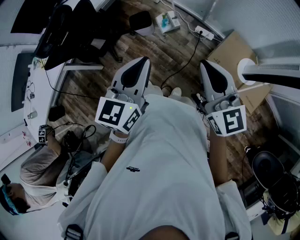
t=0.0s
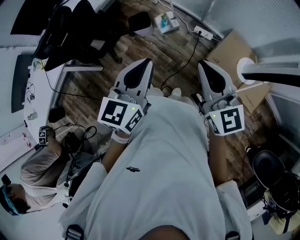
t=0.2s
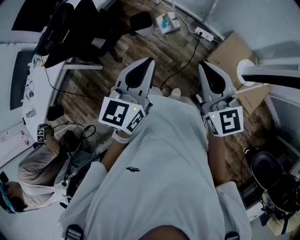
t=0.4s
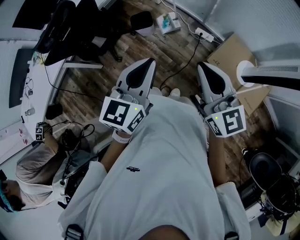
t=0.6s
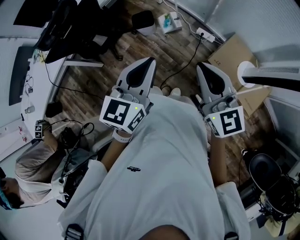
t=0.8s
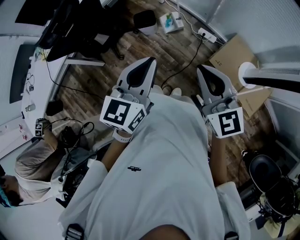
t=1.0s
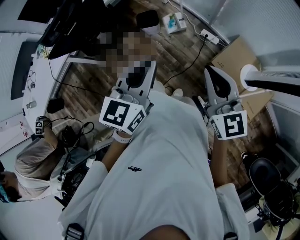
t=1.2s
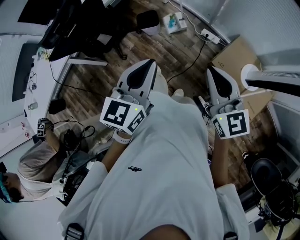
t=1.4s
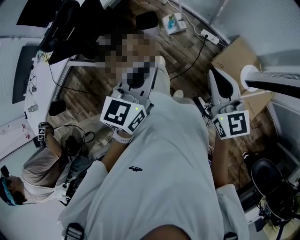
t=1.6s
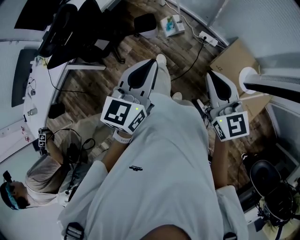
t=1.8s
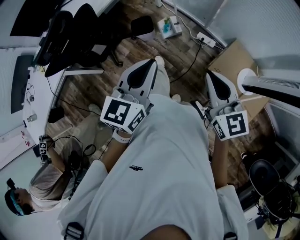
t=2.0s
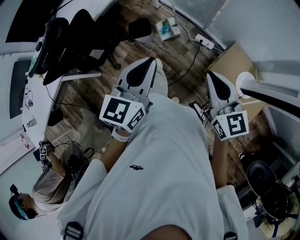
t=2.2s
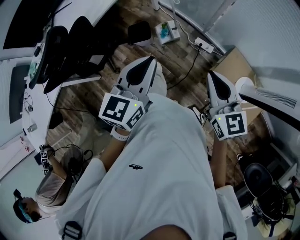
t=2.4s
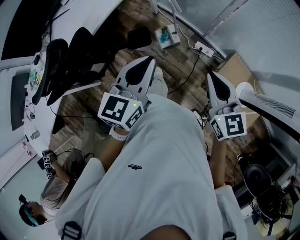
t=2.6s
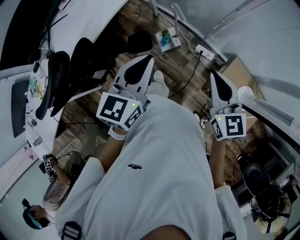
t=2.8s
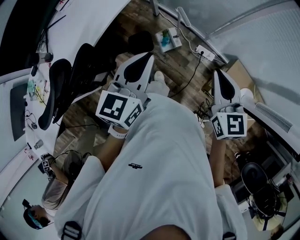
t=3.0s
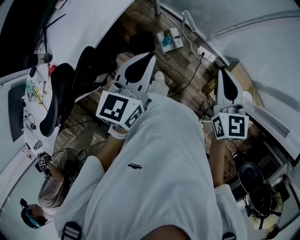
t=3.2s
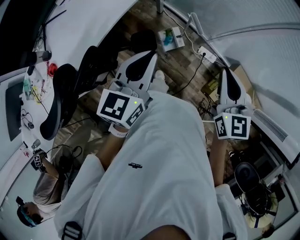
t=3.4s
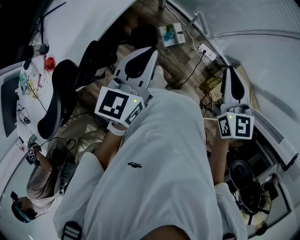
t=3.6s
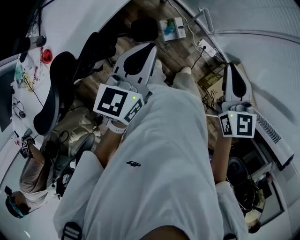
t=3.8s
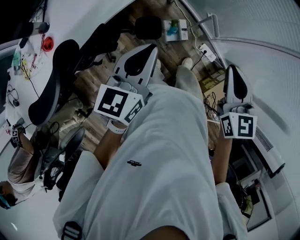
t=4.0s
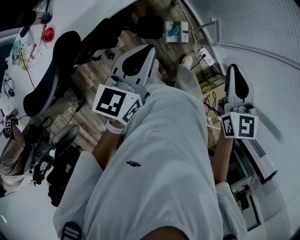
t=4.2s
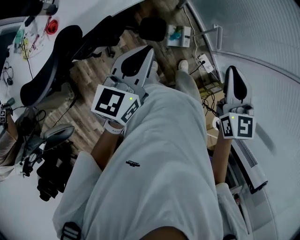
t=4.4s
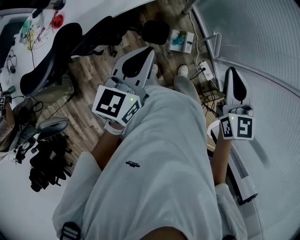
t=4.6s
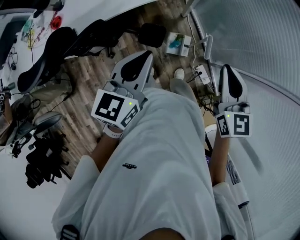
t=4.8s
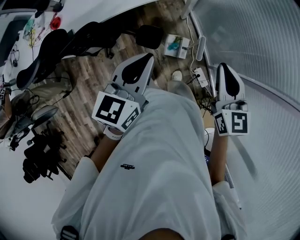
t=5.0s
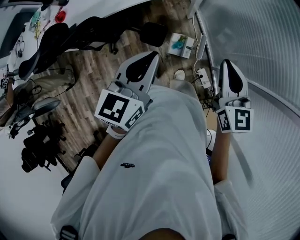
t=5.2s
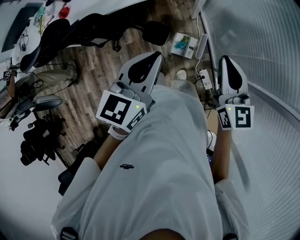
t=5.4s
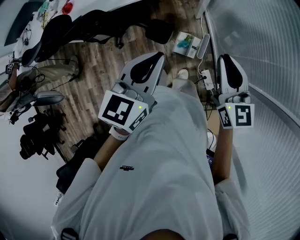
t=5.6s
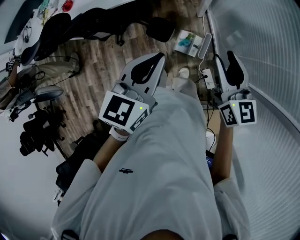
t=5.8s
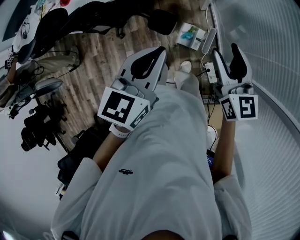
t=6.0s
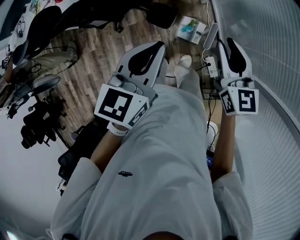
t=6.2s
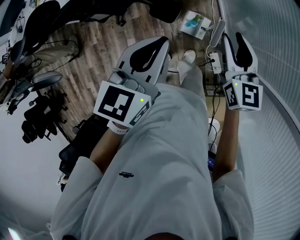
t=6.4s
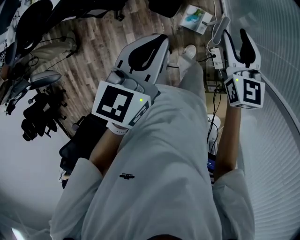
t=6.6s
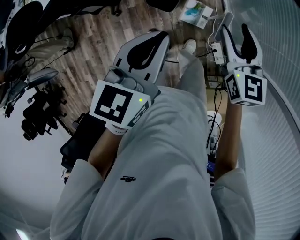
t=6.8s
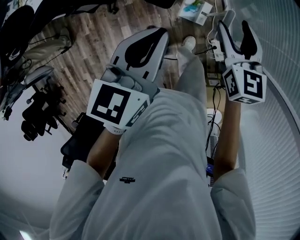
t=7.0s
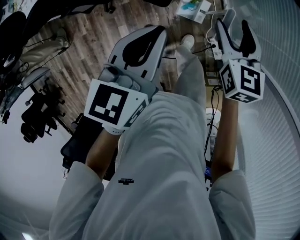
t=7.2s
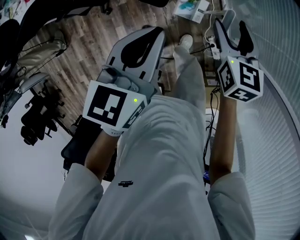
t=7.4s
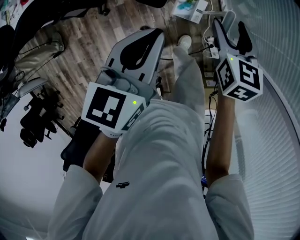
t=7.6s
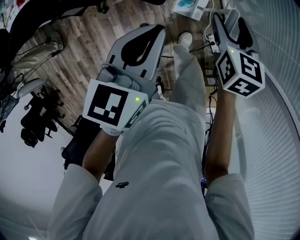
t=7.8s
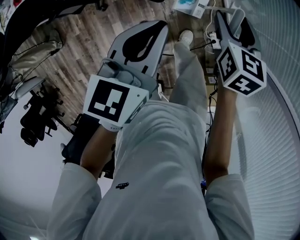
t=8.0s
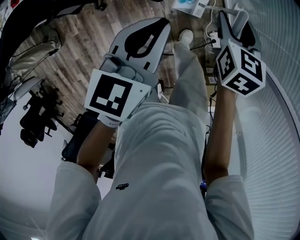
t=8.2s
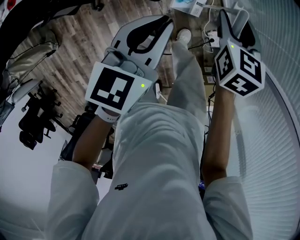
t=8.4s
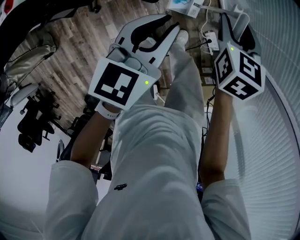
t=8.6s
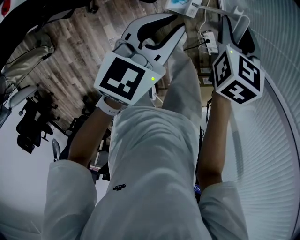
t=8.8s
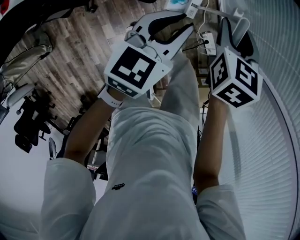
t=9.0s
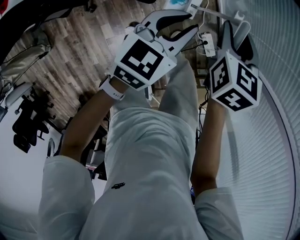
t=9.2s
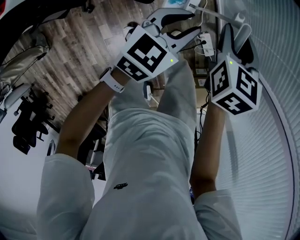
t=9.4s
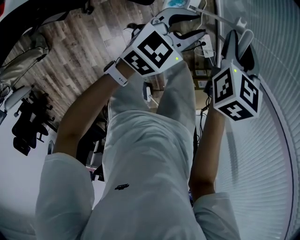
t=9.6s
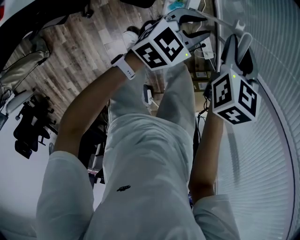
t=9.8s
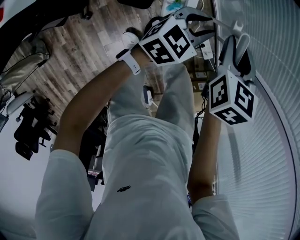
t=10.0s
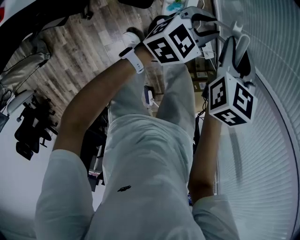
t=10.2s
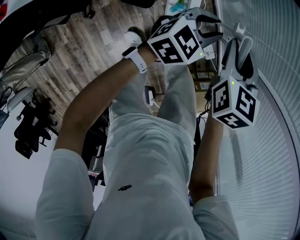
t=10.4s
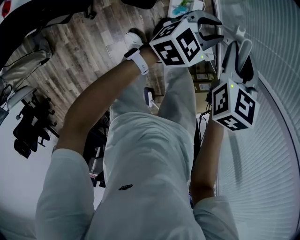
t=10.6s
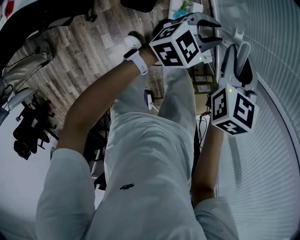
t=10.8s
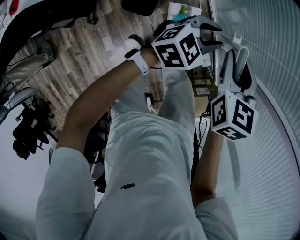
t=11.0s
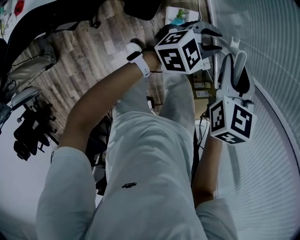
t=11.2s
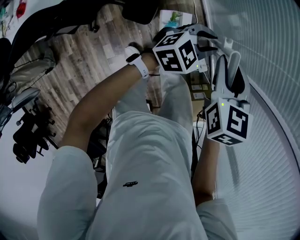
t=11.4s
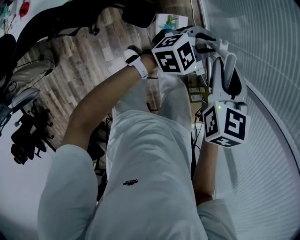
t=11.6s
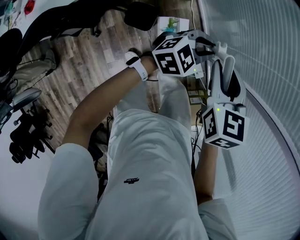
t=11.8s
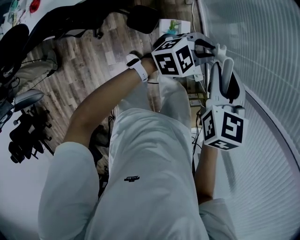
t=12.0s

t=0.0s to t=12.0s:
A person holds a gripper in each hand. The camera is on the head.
t=0.0s to t=1.6s: The grippers stay close to where they were, moving slightly.
t=1.6s to t=3.0s: Both grippers travel together forward, some 35 cm.
t=3.0s to t=4.4s: The left gripper goes roughly 15 cm to the left and downward, and swivels some 20 degrees. Meanwhile the right gripper goes roughly 20 cm forward and to the left.
t=4.4s to t=6.0s: The left gripper shifts approximately 20 cm to the right. Meanwhile the right gripper heads to the right, forward and downward, covering about 15 cm, rotates approximately 30 degrees, and opens up.
t=6.0s to t=7.6s: The two grippers go some 20 cm downward. The right gripper turns by roughly 30 degrees, and closes, then opens again.
t=7.6s to t=9.0s: The left gripper shifts roughly 10 cm downward.
t=9.0s to t=10.4s: The left gripper is displaced to the right, downward and forward by roughly 15 cm, and changes its angle by roughly 30 degrees.
t=10.4s to t=12.0s: The two grippers go roughly 15 cm upward.

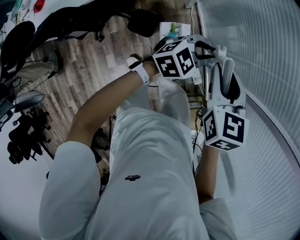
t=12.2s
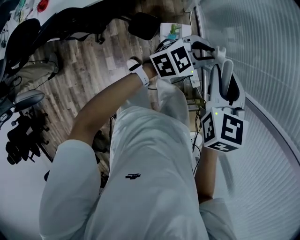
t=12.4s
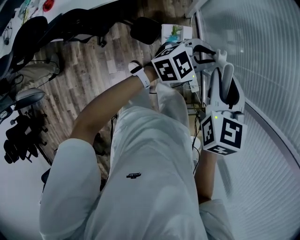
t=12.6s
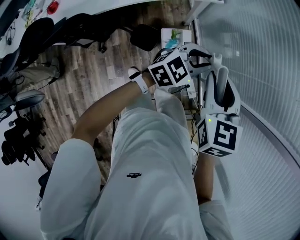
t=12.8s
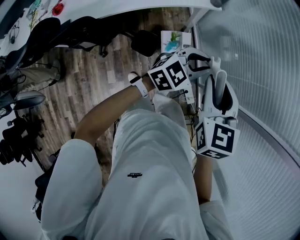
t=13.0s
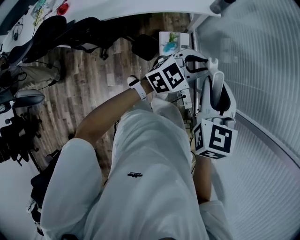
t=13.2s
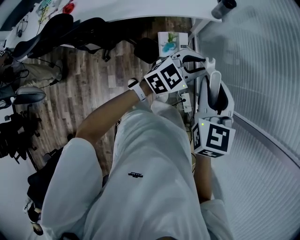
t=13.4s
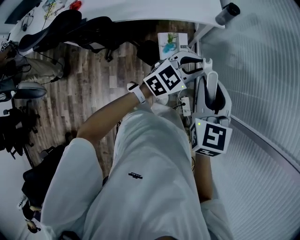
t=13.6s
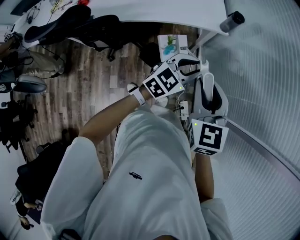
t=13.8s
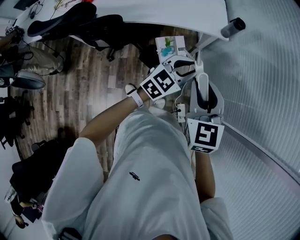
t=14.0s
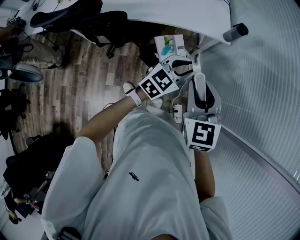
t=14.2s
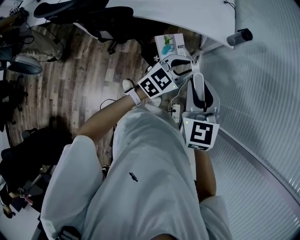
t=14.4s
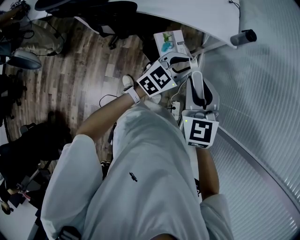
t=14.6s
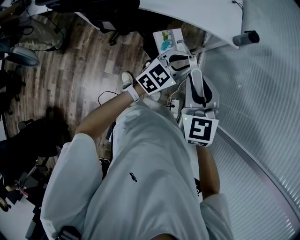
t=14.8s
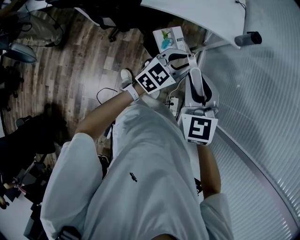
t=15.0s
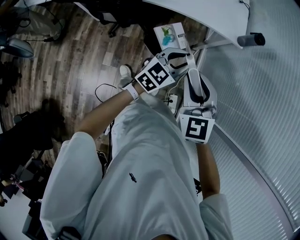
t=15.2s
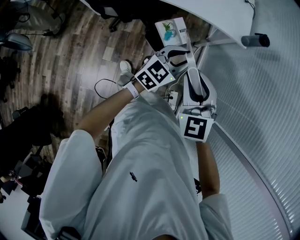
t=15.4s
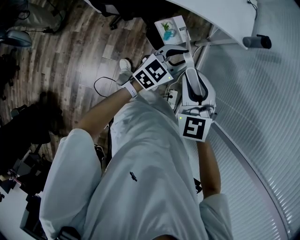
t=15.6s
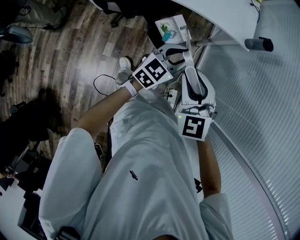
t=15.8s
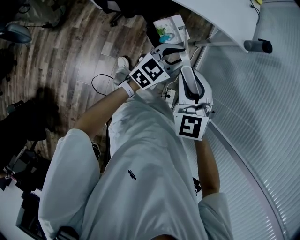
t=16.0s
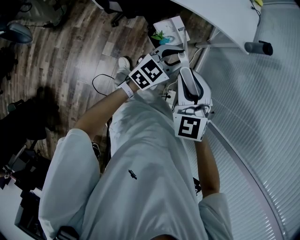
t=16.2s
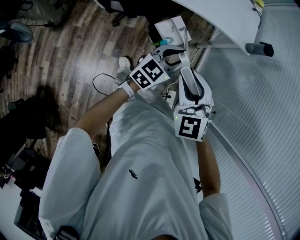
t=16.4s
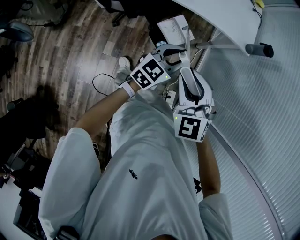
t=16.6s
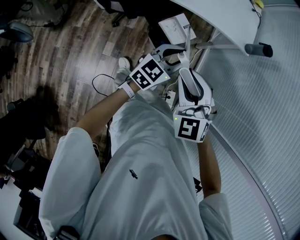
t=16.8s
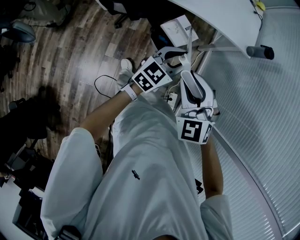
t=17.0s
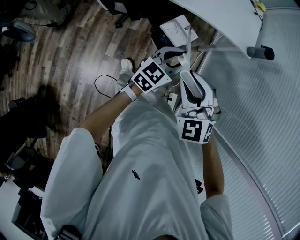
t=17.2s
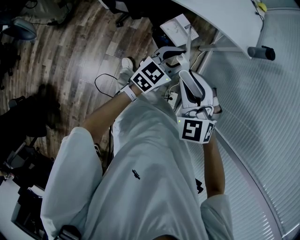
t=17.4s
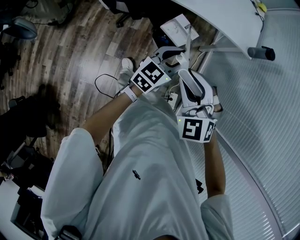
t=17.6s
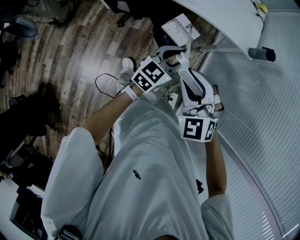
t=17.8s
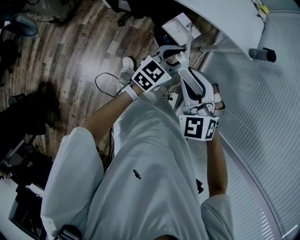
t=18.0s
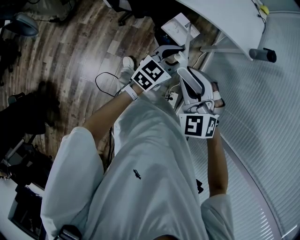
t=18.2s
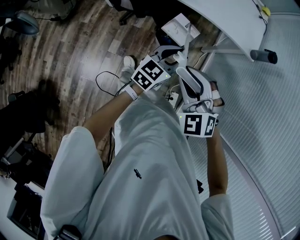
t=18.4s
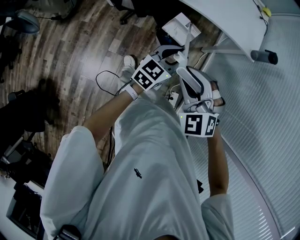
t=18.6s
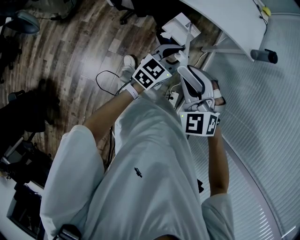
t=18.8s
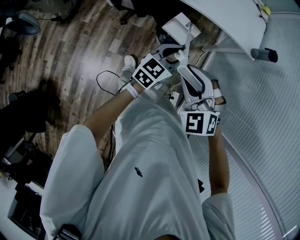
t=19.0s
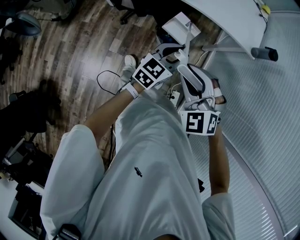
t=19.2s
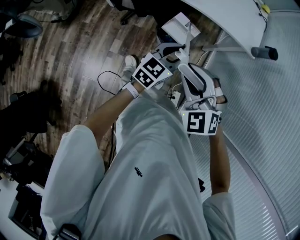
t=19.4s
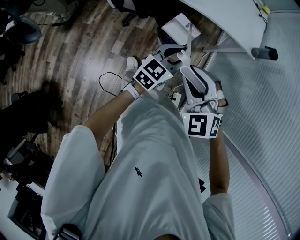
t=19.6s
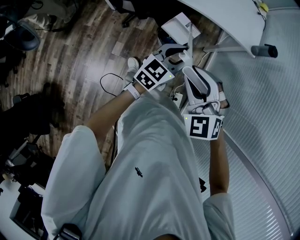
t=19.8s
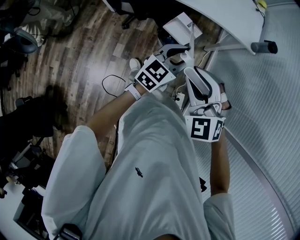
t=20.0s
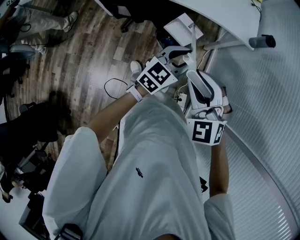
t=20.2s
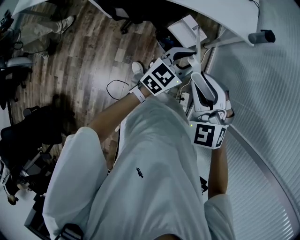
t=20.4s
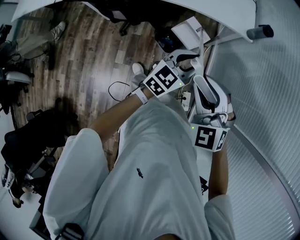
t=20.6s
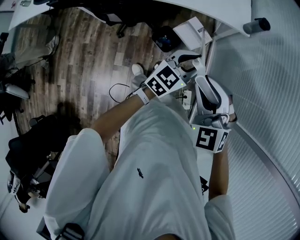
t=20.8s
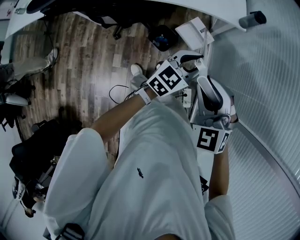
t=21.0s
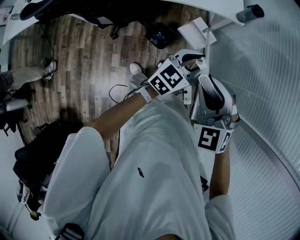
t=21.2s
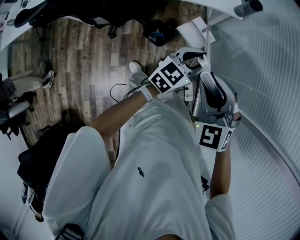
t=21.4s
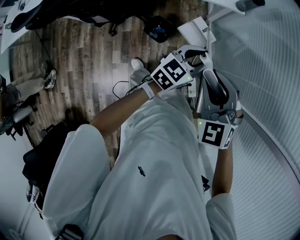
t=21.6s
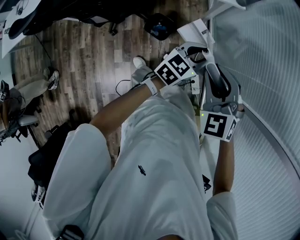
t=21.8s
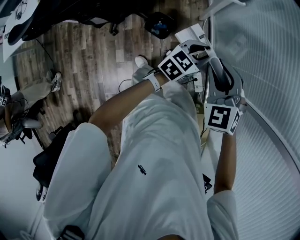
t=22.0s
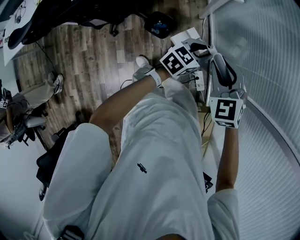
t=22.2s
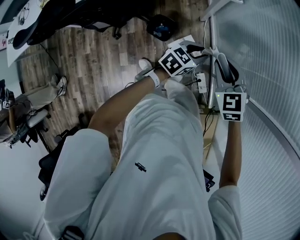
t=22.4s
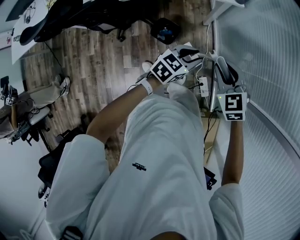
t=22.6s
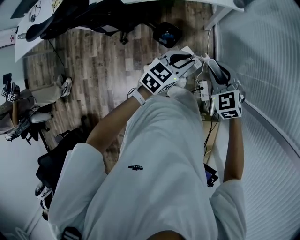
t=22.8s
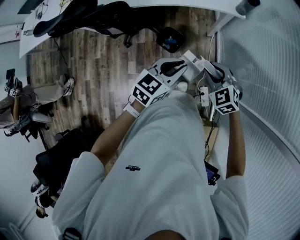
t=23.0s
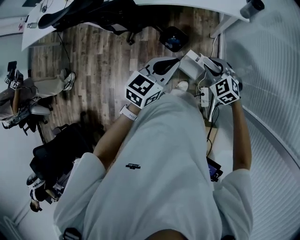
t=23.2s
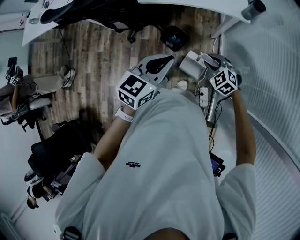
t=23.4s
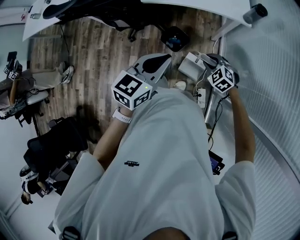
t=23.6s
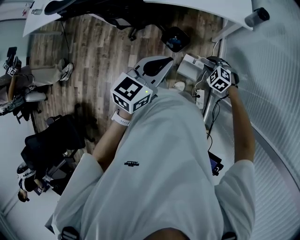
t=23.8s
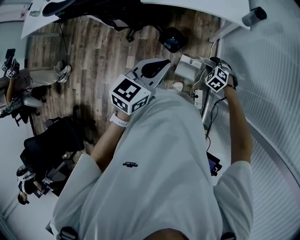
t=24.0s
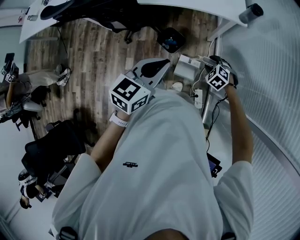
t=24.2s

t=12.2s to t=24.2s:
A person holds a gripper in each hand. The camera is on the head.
t=12.2s to t=13.8s: The grippers both shift upward and to the left by roughly 15 cm. The right gripper changes its angle by some 30 degrees. The left gripper turns by approximately 30 degrees.
t=13.8s to t=15.2s: The two grippers go some 10 cm to the left and downward. The right gripper changes its angle by approximately 30 degrees.
t=15.2s to t=16.6s: Both grippers move to the left, approximately 5 cm.
t=16.6s to t=18.2s: There are only small adjustments of the grippers.
t=18.2s to t=19.8s: There are only small adjustments of the grippers.
t=19.8s to t=21.2s: Both grippers move to the right, roughly 15 cm. The left gripper changes its angle by roughly 20 degrees. The right gripper swivels about 20 degrees.
t=21.2s to t=22.6s: The left gripper goes about 10 cm downward, and rotates about 20 degrees. Meanwhile the right gripper moves downward, to the right and forward, some 15 cm, and swivels roughly 20 degrees.
t=22.6s to t=24.2s: The left gripper moves upward, approximately 15 cm, changes its angle by roughly 30 degrees, and closes; the right gripper heads downward, covering approximately 20 cm, and rotates roughly 40 degrees.
